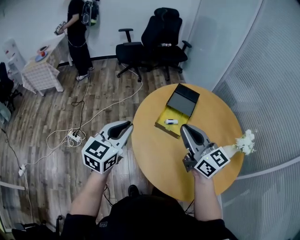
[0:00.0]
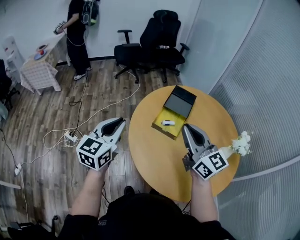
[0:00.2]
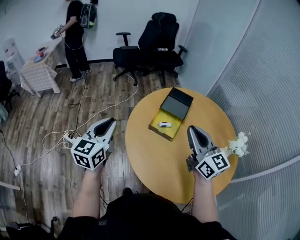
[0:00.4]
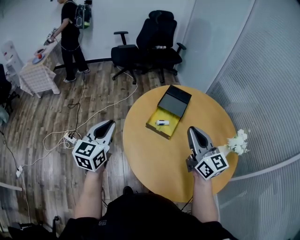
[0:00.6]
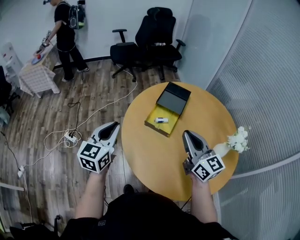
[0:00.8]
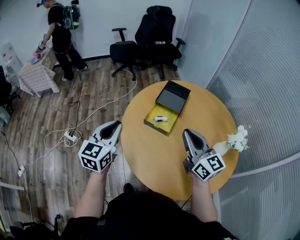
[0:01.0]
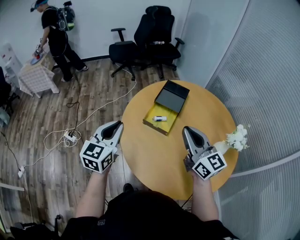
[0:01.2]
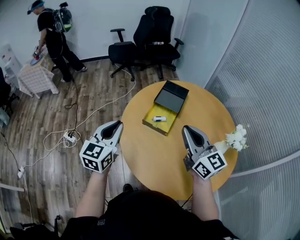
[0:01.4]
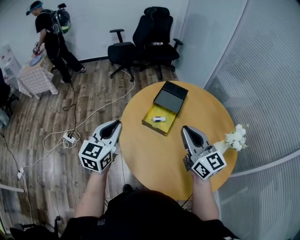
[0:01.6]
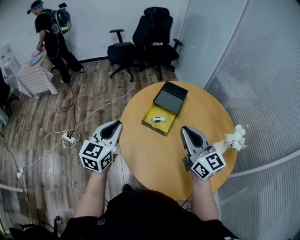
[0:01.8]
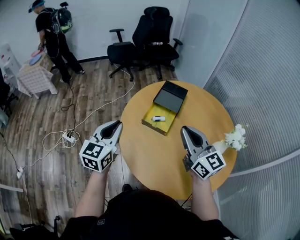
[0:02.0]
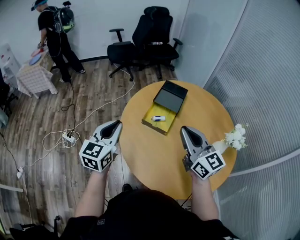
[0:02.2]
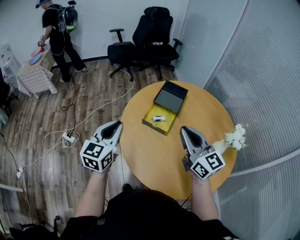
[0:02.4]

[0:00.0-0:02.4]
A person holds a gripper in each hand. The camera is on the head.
0.0 to 1.2 s: The right gripper is displaced to the right by some 10 cm.
1.2 to 2.4 s: Both grippers stay about where they are.

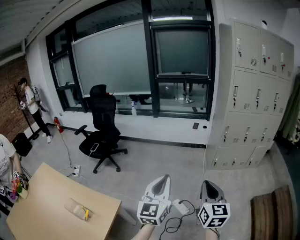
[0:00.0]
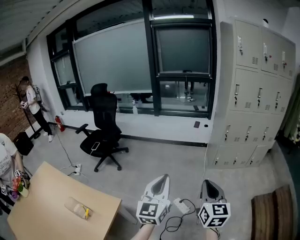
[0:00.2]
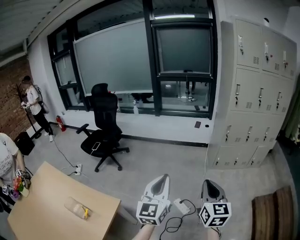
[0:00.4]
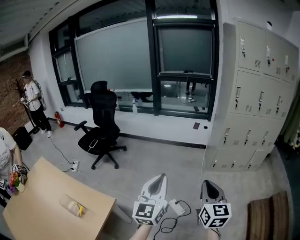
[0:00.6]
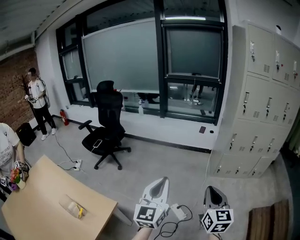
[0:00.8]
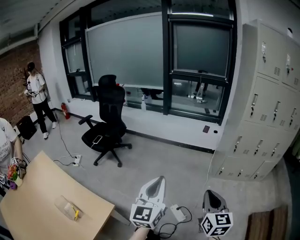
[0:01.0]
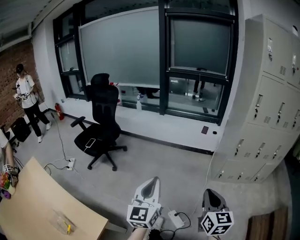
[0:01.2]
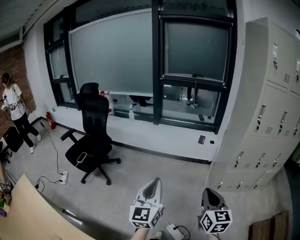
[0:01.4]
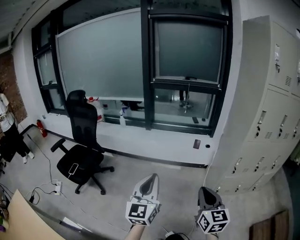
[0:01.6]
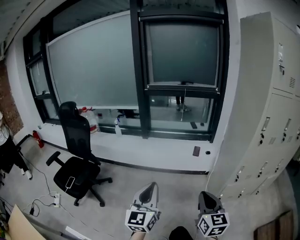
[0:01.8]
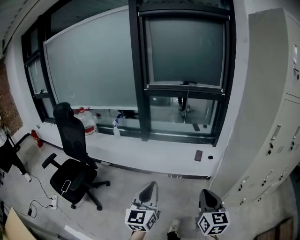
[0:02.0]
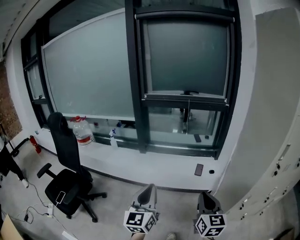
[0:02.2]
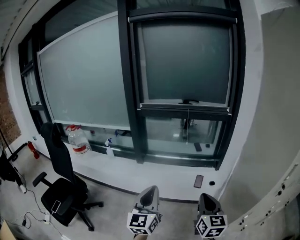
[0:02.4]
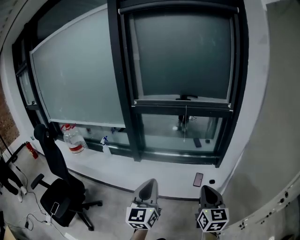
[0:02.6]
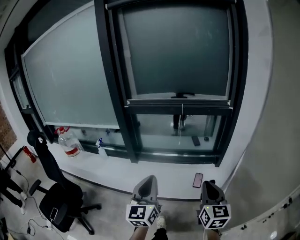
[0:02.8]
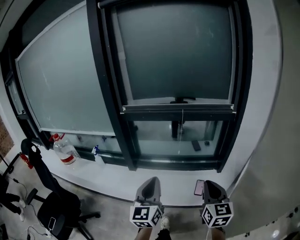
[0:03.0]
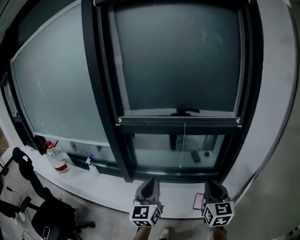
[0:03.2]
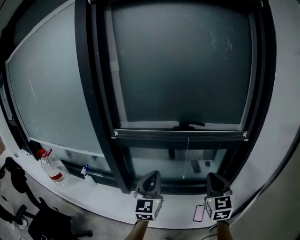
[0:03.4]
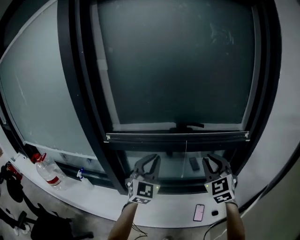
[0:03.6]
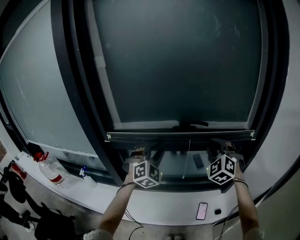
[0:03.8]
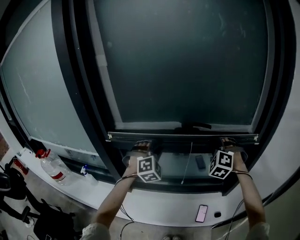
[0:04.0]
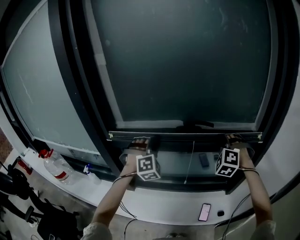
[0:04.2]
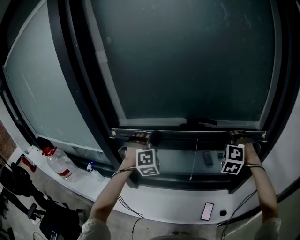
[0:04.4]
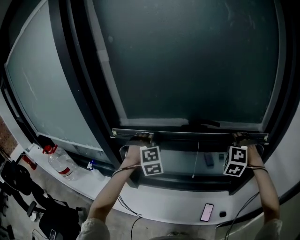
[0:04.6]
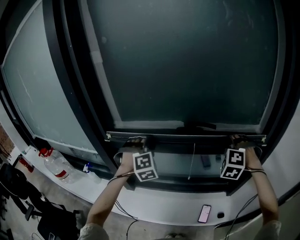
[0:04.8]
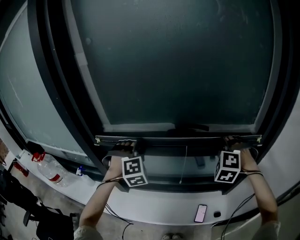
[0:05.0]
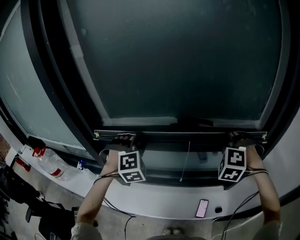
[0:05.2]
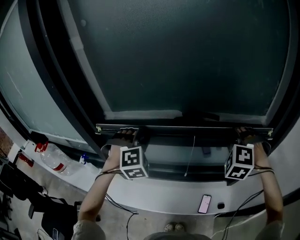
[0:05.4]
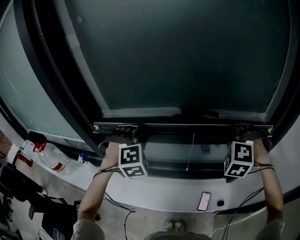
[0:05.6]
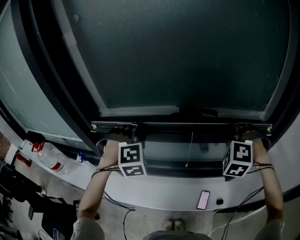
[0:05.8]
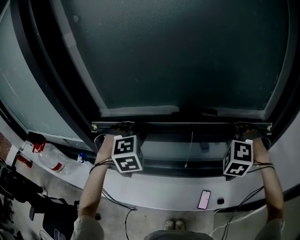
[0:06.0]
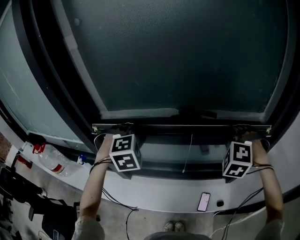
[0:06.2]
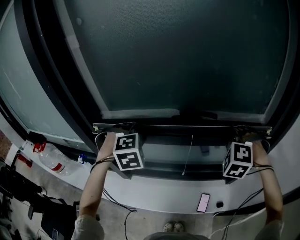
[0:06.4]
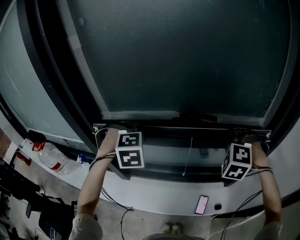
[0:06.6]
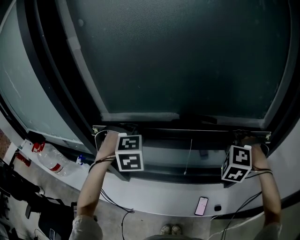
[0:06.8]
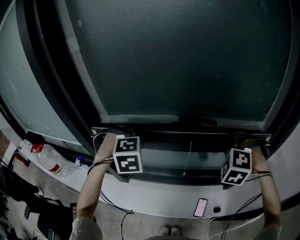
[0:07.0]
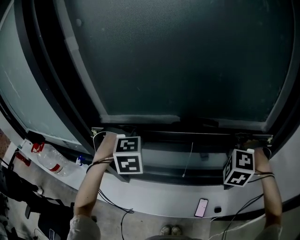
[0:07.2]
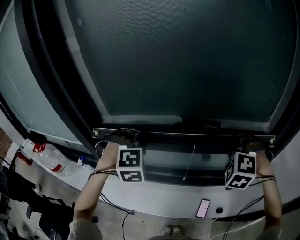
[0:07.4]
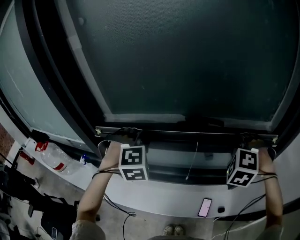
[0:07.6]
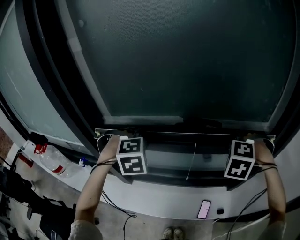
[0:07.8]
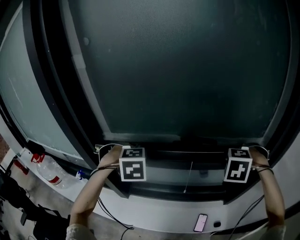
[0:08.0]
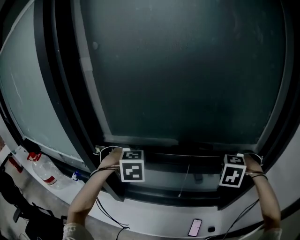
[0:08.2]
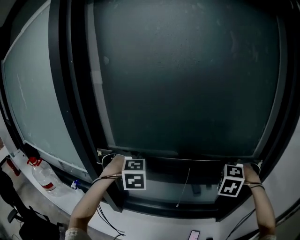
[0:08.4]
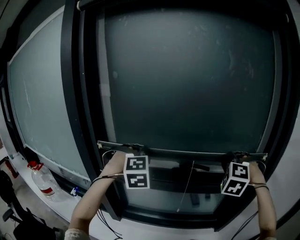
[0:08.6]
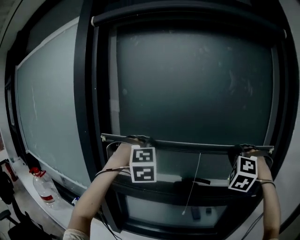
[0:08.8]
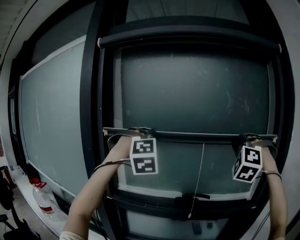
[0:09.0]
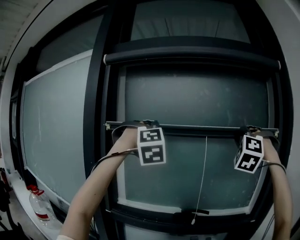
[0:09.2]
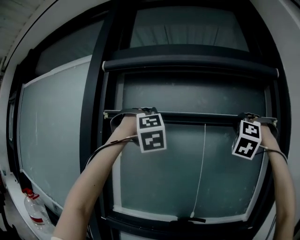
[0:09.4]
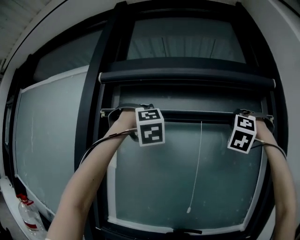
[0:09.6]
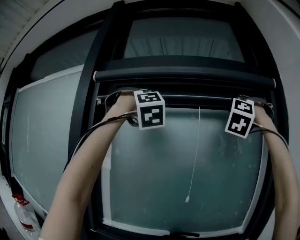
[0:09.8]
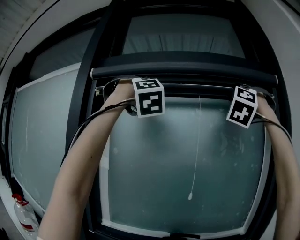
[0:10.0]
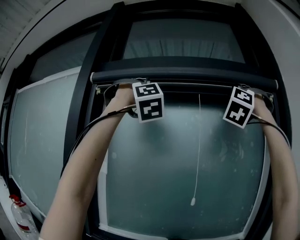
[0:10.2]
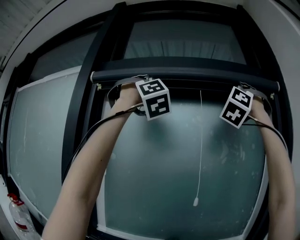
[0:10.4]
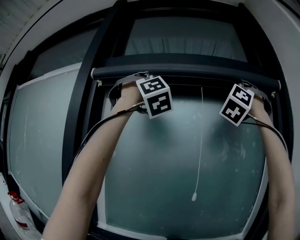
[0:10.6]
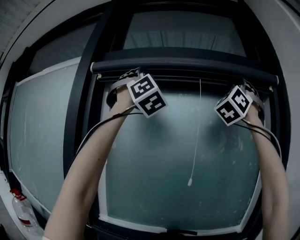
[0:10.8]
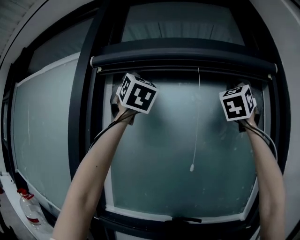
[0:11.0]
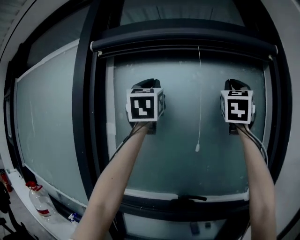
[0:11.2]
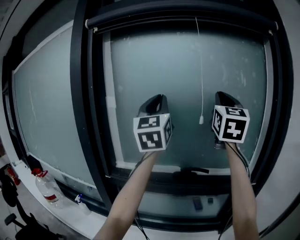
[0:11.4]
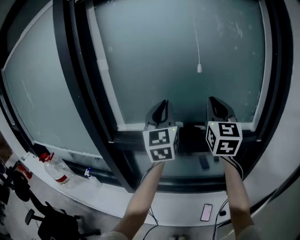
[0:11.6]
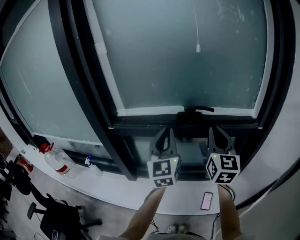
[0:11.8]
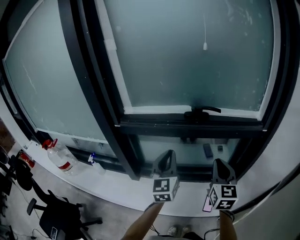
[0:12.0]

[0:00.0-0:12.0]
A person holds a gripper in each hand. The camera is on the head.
0.0 to 1.6 s: The two grippers travel together, forward, approximately 40 cm.
1.6 to 3.0 s: The pair of grippers is taken forward, some 60 cm.
3.0 to 4.4 s: Both grippers are carried forward, about 50 cm. The left gripper twists some 90 degrees clockwise, seen from behind, and opens; the right gripper rotates around the line of its fingers by roughly 80 degrees, counterclockwise from behind.
4.4 to 6.0 s: The left gripper changes its angle by some 20 degrees.
6.0 to 7.6 s: The grippers stay close to where they were, moving slightly.
7.6 to 9.0 s: Both grippers move upward, about 35 cm. The left gripper points its fingers about 30 degrees further upward; the right gripper points its fingers about 40 degrees further upward.
9.0 to 10.4 s: The two grippers go approximately 40 cm upward. The right gripper points its fingers approximately 40 degrees further upward. Meanwhile the left gripper angles its fingers upward, by about 40 degrees.
10.4 to 12.0 s: The two grippers go about 70 cm downward. The right gripper twists about 80 degrees clockwise, seen from behind; the left gripper twists approximately 80 degrees counterclockwise, seen from behind.

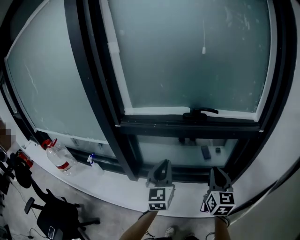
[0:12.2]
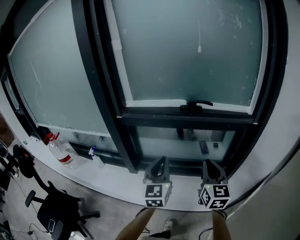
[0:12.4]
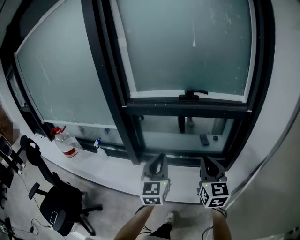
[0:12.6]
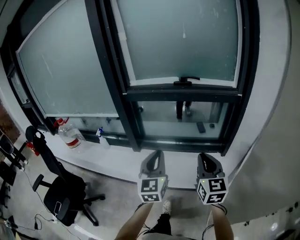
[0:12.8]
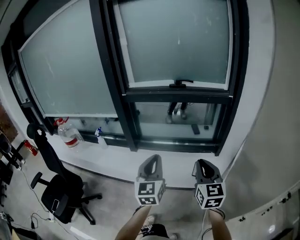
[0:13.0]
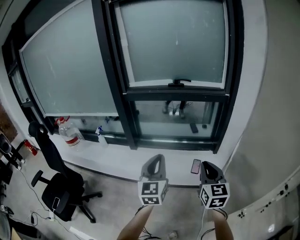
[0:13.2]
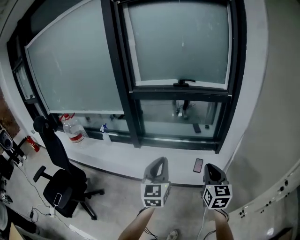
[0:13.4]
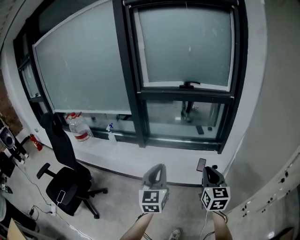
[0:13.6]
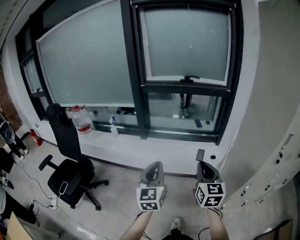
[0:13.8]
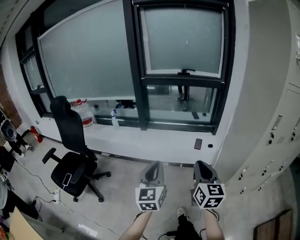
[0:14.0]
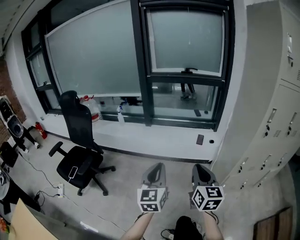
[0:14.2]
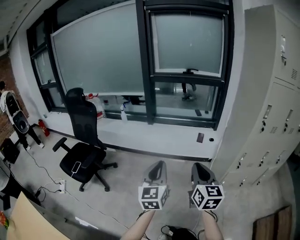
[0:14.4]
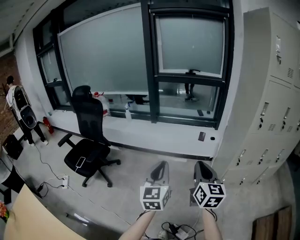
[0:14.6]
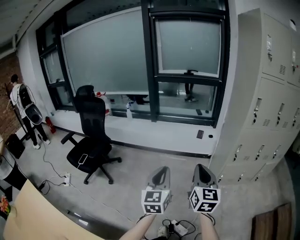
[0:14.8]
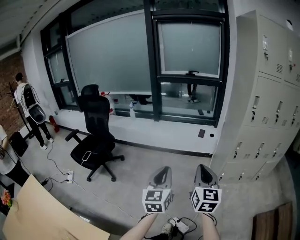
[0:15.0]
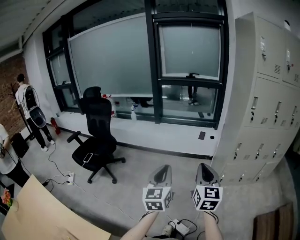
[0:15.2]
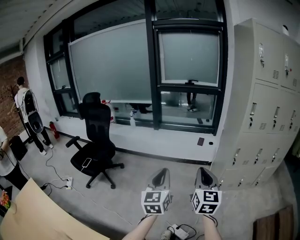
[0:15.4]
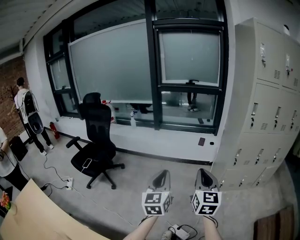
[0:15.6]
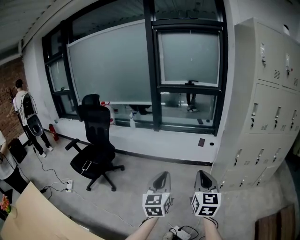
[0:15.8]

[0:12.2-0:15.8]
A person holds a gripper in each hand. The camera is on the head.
12.2 to 14.0 s: The pair of grippers is taken backward, some 70 cm.
14.0 to 15.8 s: The two grippers go some 30 cm backward.

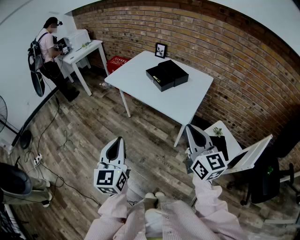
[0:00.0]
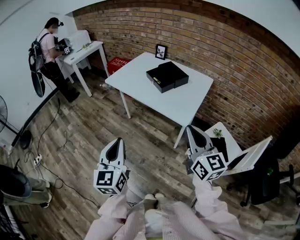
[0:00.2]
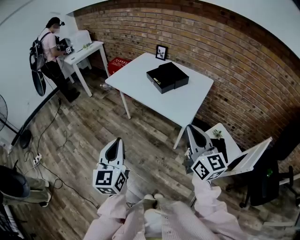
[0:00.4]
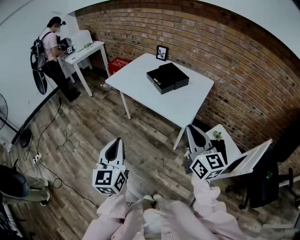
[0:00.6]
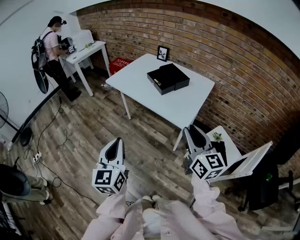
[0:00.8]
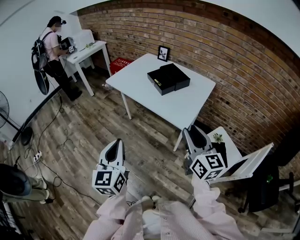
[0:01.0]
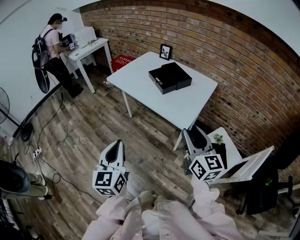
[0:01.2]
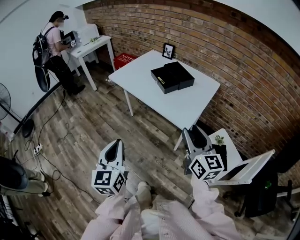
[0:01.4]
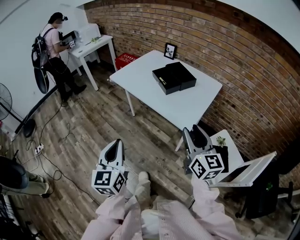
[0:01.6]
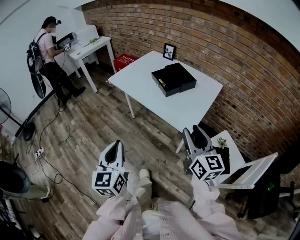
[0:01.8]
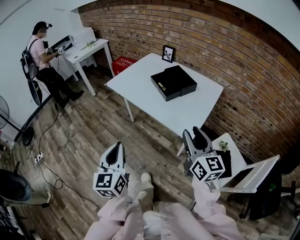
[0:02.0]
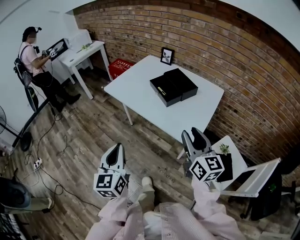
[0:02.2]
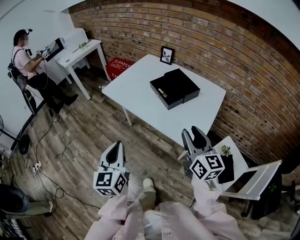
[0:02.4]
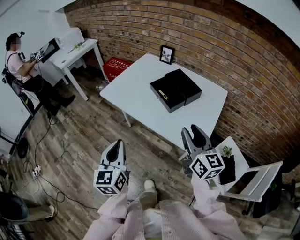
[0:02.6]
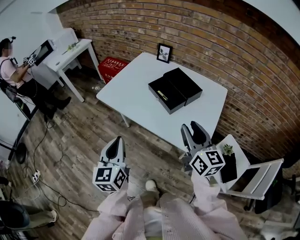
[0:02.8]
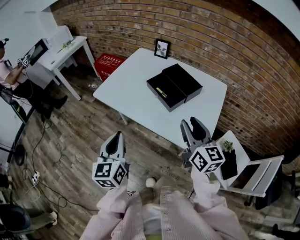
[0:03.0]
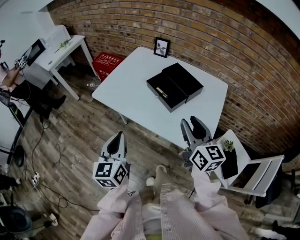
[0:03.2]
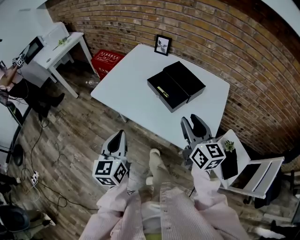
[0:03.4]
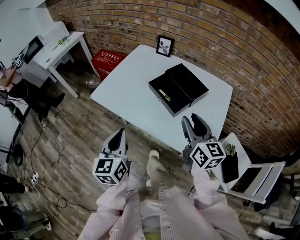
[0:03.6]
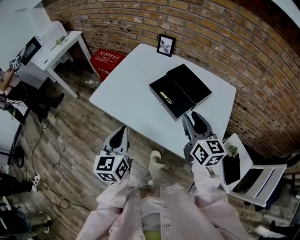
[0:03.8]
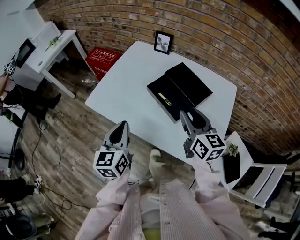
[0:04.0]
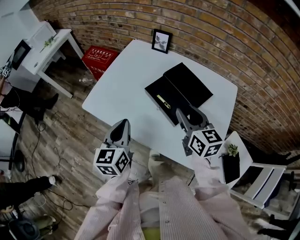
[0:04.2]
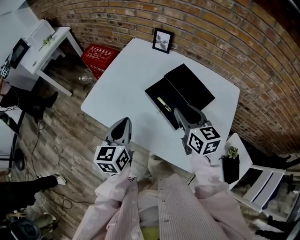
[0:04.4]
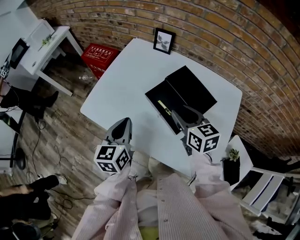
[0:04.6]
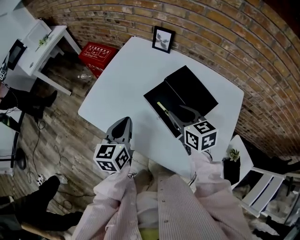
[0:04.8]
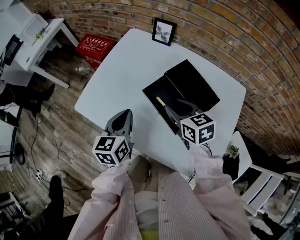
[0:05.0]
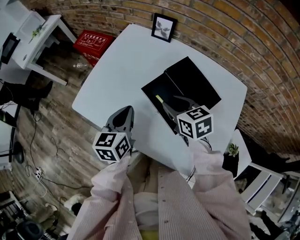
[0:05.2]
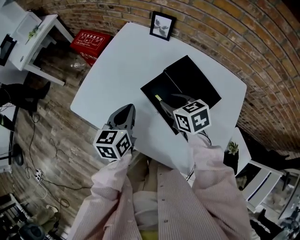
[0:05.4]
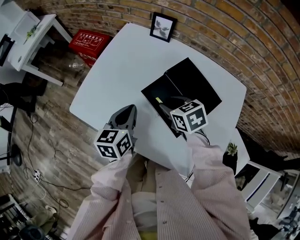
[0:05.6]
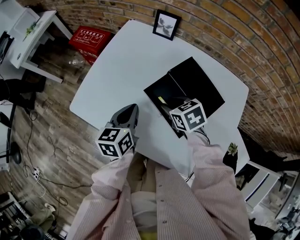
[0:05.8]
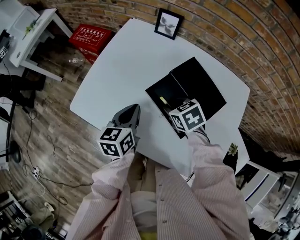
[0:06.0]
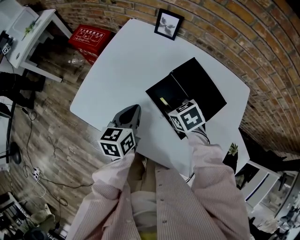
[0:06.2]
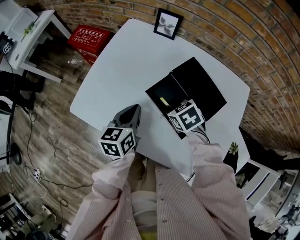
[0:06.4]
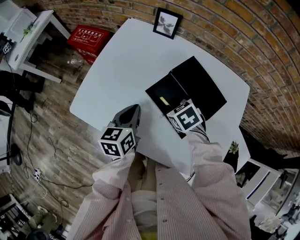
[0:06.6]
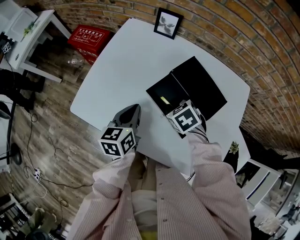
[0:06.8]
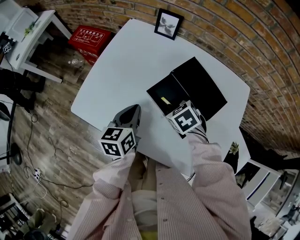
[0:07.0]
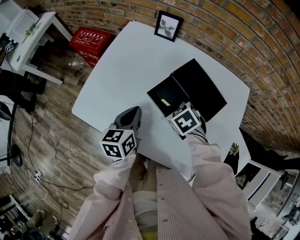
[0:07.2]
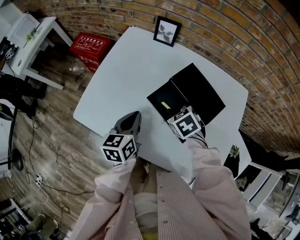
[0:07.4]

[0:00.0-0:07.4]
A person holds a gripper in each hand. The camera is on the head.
0.0 to 1.4 s: The right gripper ends up some 5 cm from where it was, and opens up.
1.4 to 3.0 s: The grippers both shift forward by approximately 25 cm.
3.0 to 4.4 s: The grippers both shift forward by approximately 20 cm.
4.4 to 6.0 s: The left gripper goes about 10 cm forward and downward. Meanwhile the right gripper shifts about 15 cm downward and forward, and tilts its fingers about 40 degrees downward.
6.0 to 7.4 s: The right gripper closes up.
